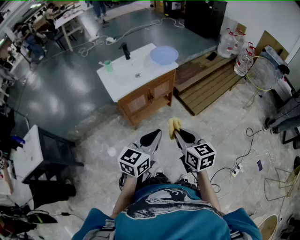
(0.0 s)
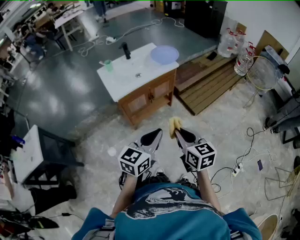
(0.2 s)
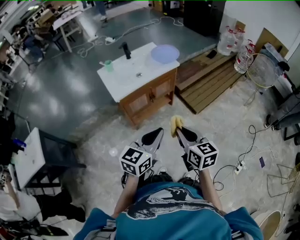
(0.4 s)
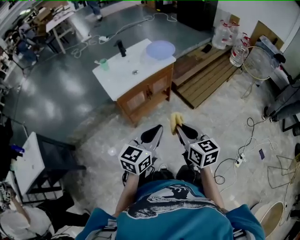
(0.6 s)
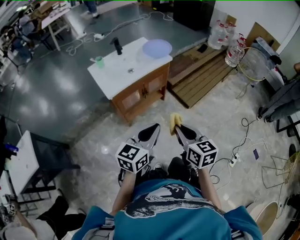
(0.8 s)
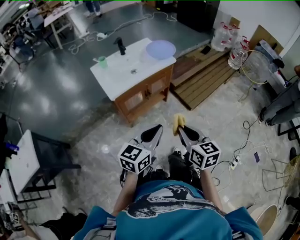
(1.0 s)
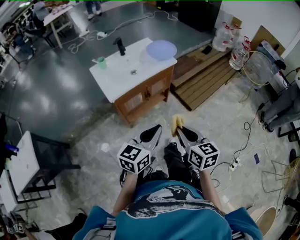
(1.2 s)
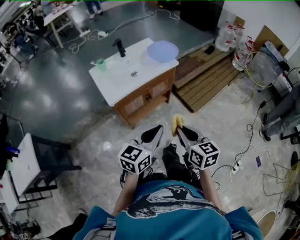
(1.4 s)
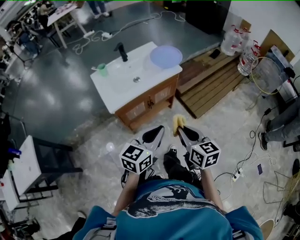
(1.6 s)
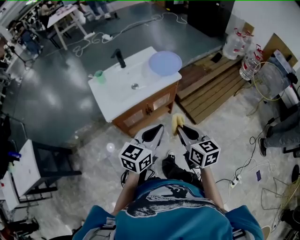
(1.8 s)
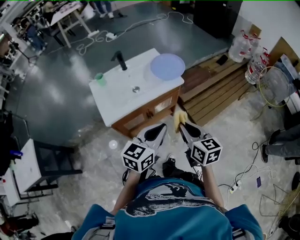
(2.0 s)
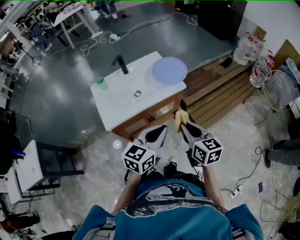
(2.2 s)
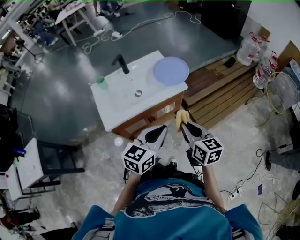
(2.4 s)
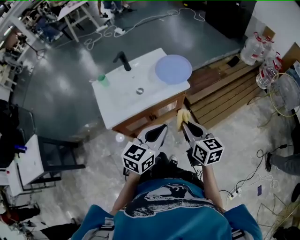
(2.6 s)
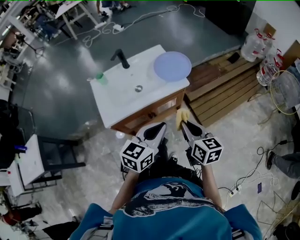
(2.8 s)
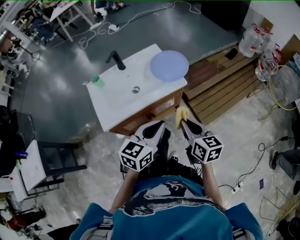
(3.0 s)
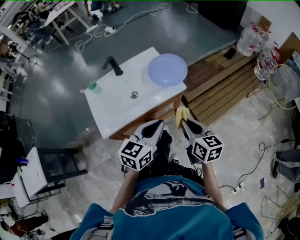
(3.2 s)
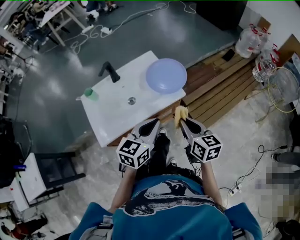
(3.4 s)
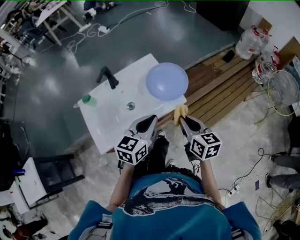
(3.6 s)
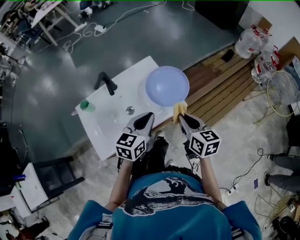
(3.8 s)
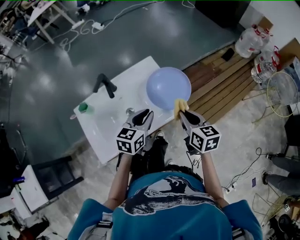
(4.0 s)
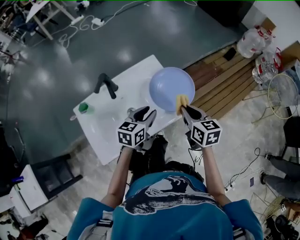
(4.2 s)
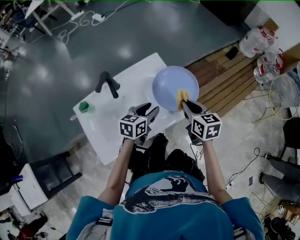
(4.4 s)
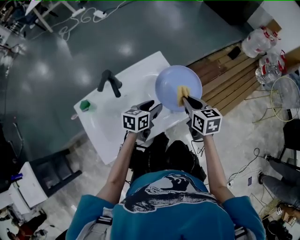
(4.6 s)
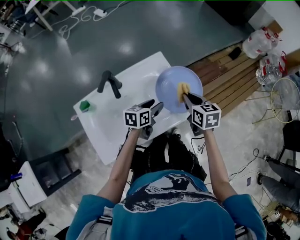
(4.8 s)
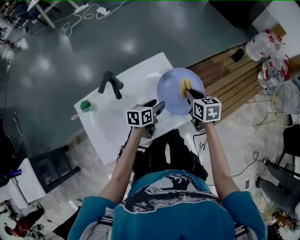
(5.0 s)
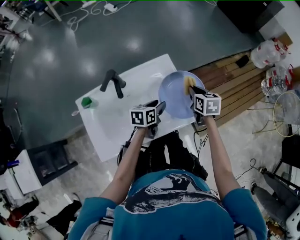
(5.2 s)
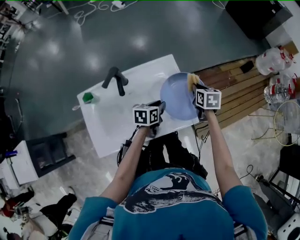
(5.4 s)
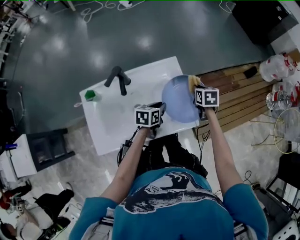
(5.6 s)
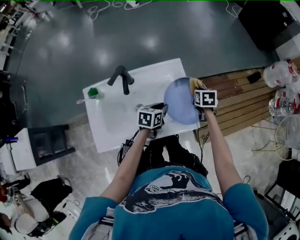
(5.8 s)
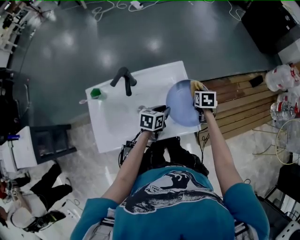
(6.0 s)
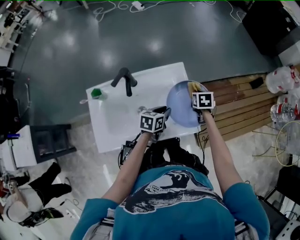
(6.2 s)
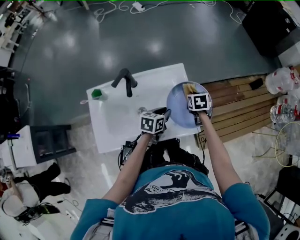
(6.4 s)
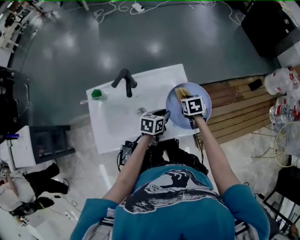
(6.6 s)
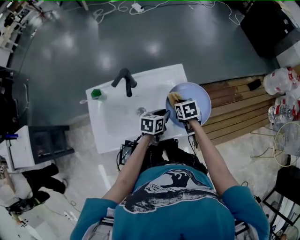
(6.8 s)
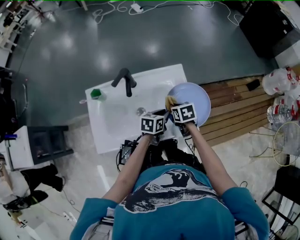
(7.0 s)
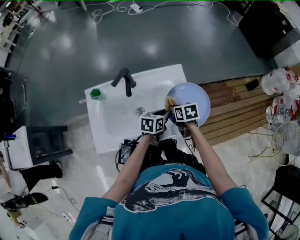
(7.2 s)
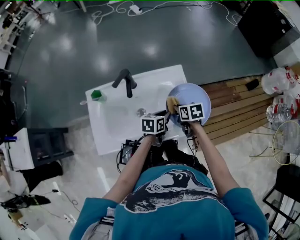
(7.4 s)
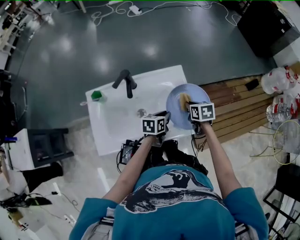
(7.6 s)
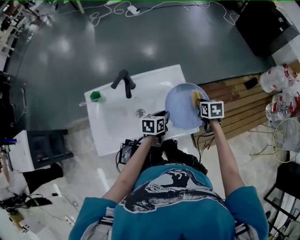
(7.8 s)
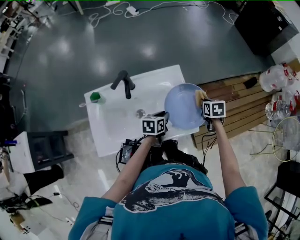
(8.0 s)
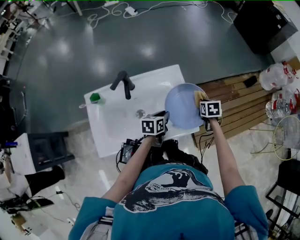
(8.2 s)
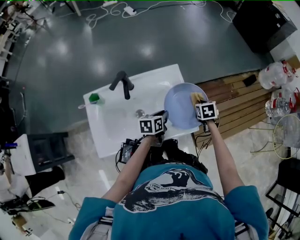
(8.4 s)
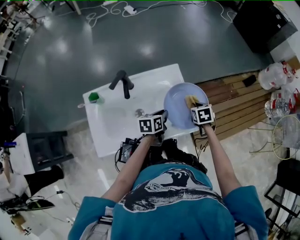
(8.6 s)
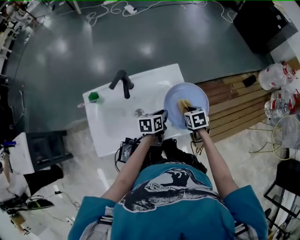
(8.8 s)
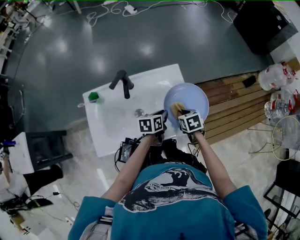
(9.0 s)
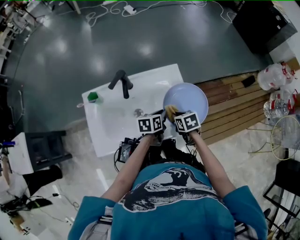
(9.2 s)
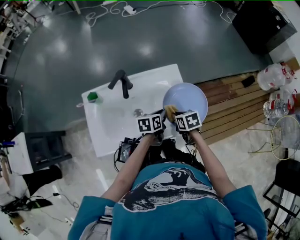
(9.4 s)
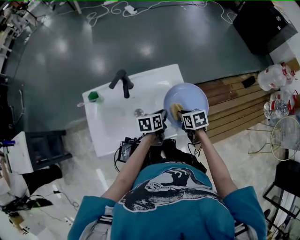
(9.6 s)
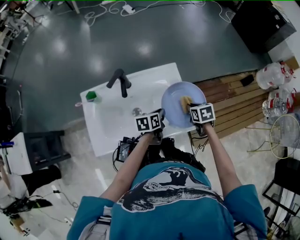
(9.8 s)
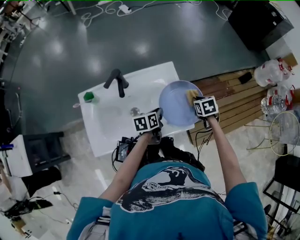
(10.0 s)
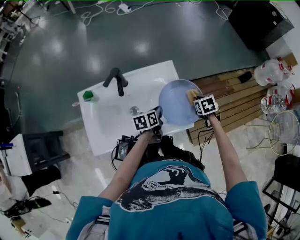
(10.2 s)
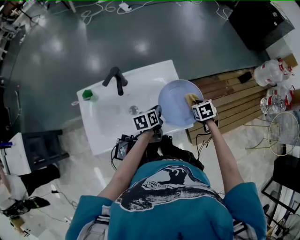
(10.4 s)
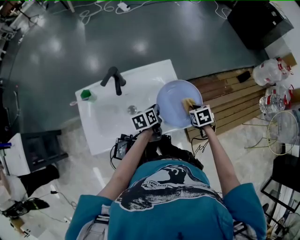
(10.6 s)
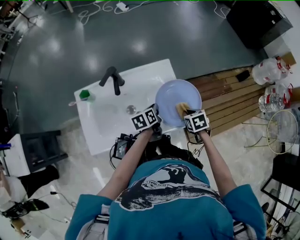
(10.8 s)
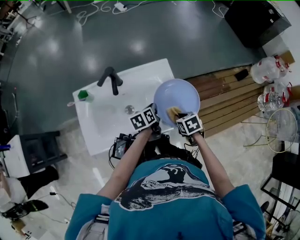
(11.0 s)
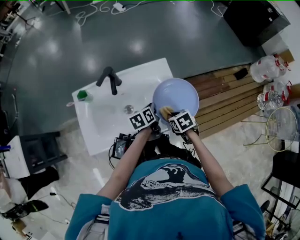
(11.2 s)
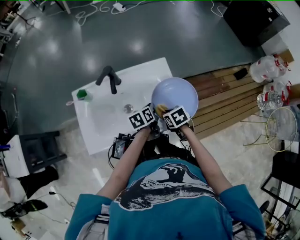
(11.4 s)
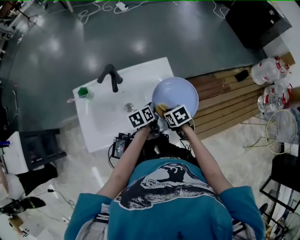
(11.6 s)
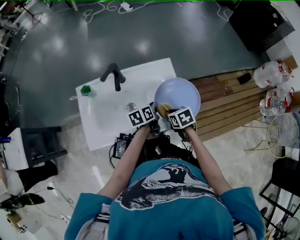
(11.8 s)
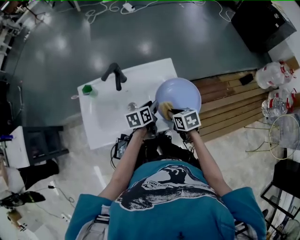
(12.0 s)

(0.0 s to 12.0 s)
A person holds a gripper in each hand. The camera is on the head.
0.0 s - 1.6 s: The two grippers go some 15 cm forward.
1.6 s - 3.0 s: The grippers both shift forward by about 20 cm.
3.0 s - 4.4 s: The right gripper heads forward, covering about 30 cm. Meanwhile the left gripper travels forward and downward by about 30 cm, and opens its fingers.
4.4 s - 6.0 s: The left gripper shifts roughly 5 cm downward, and closes its fingers, while the right gripper travels forward and downward by approximately 20 cm, and rotates some 30 degrees.
6.0 s - 7.6 s: The right gripper shifts roughly 10 cm backward and to the left.
7.6 s - 9.0 s: The right gripper travels backward by about 5 cm, and travels to the right and back again, some 10 cm each way.
9.0 s - 10.4 s: The right gripper is displaced to the right by roughly 10 cm.
10.4 s - 12.0 s: The right gripper shifts approximately 15 cm to the left, and swivels roughly 20 degrees, while the left gripper opens its fingers.

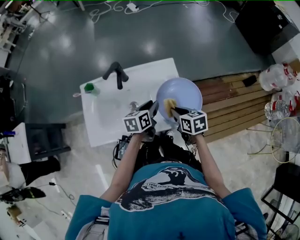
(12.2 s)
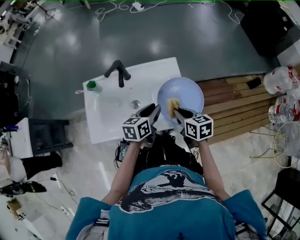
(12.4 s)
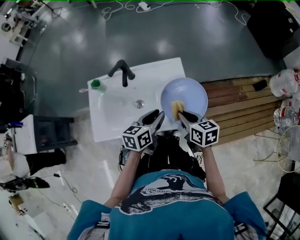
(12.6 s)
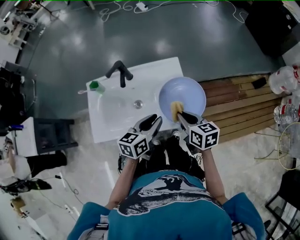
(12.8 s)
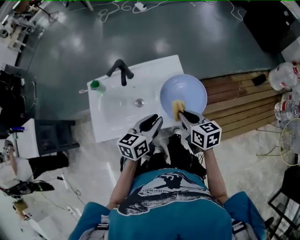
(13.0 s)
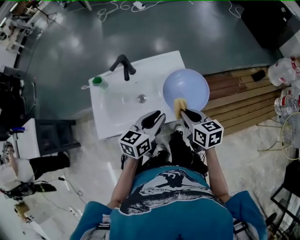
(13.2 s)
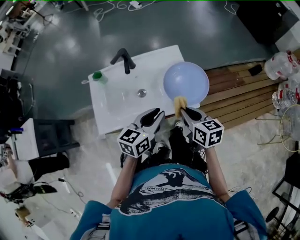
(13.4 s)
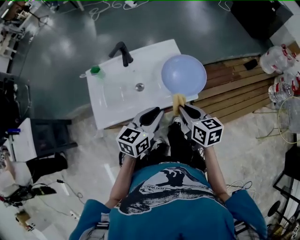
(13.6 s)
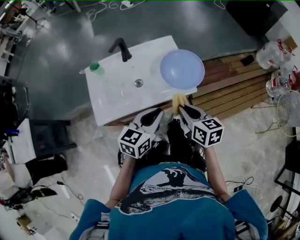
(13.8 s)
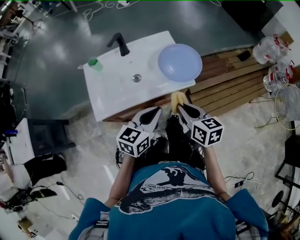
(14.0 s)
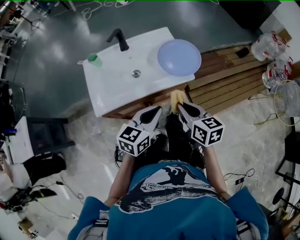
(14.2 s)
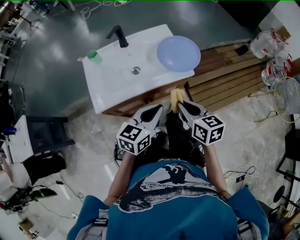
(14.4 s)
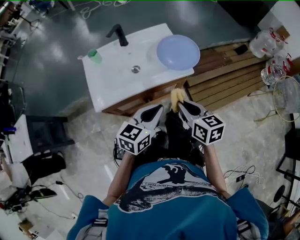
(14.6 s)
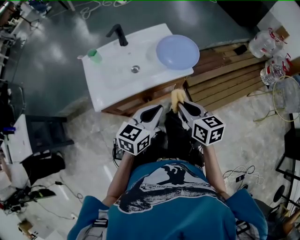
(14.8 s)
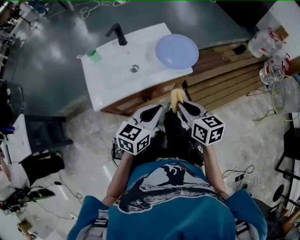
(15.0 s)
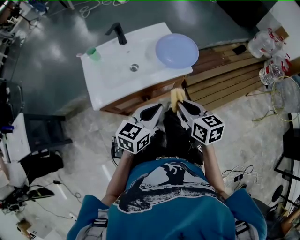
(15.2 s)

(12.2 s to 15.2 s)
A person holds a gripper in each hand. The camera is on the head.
12.2 s - 13.8 s: Both grippers travel together backward and upward, some 20 cm. The left gripper changes its angle by about 30 degrees.
13.8 s - 15.2 s: The grippers both shift backward by about 10 cm.

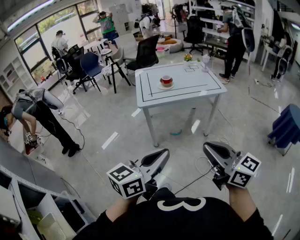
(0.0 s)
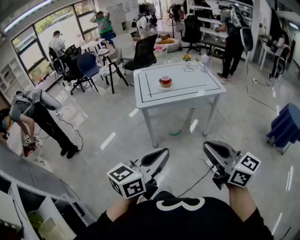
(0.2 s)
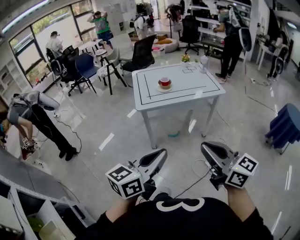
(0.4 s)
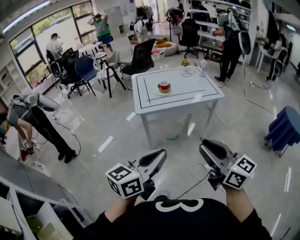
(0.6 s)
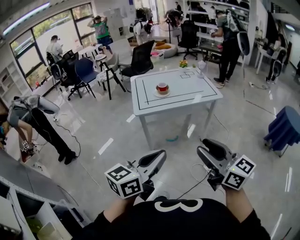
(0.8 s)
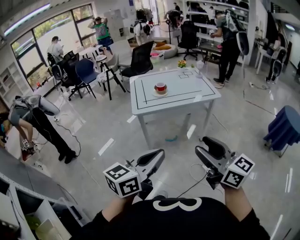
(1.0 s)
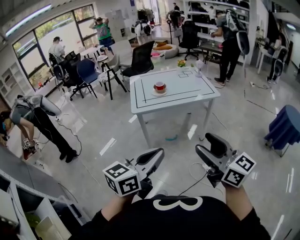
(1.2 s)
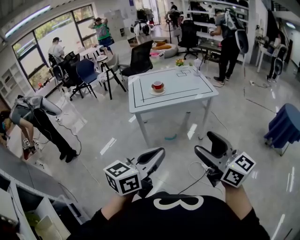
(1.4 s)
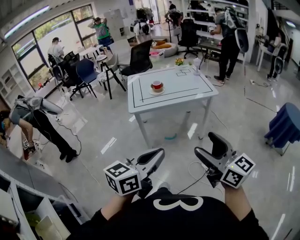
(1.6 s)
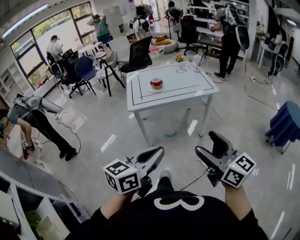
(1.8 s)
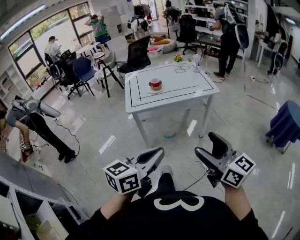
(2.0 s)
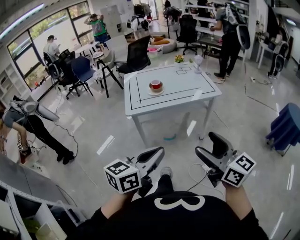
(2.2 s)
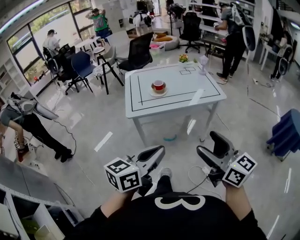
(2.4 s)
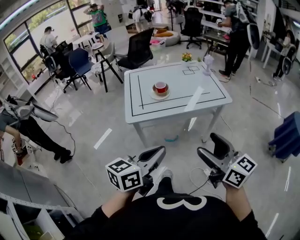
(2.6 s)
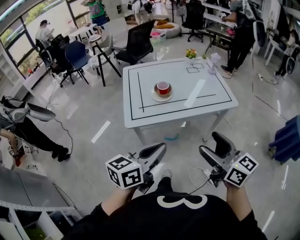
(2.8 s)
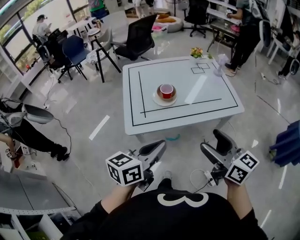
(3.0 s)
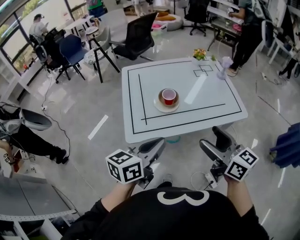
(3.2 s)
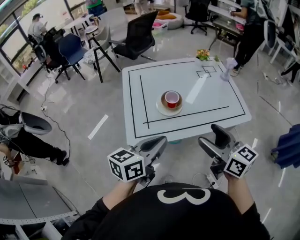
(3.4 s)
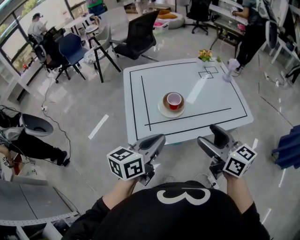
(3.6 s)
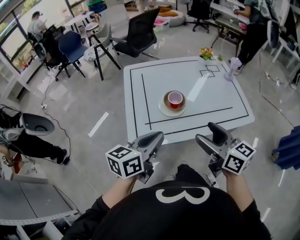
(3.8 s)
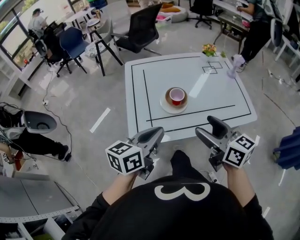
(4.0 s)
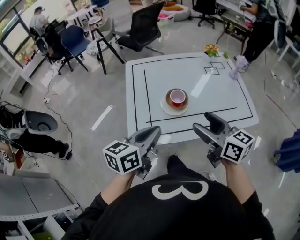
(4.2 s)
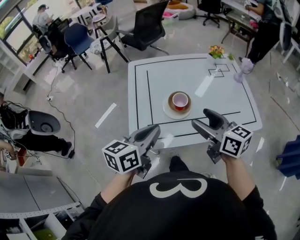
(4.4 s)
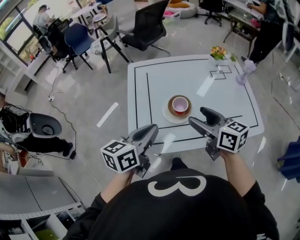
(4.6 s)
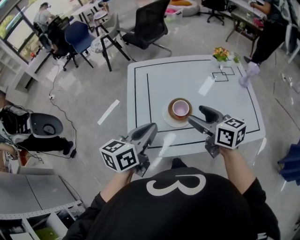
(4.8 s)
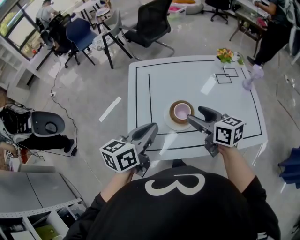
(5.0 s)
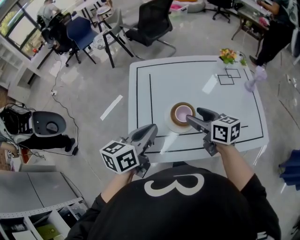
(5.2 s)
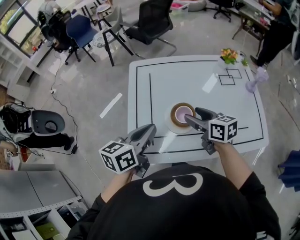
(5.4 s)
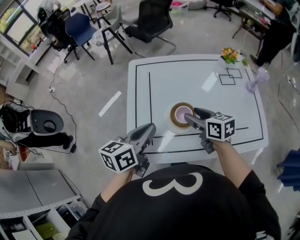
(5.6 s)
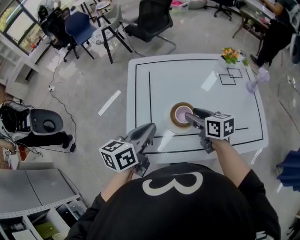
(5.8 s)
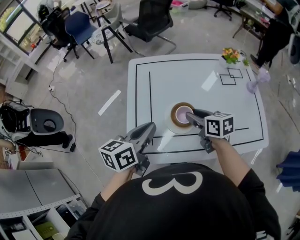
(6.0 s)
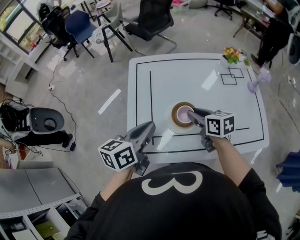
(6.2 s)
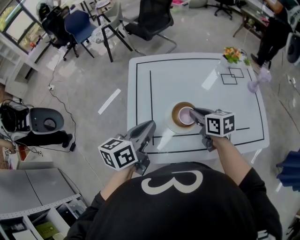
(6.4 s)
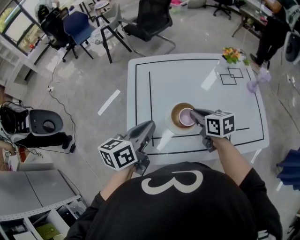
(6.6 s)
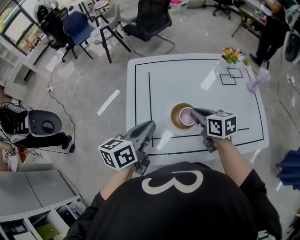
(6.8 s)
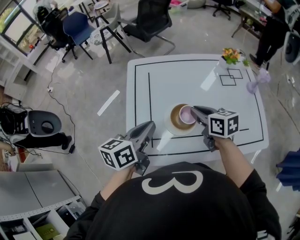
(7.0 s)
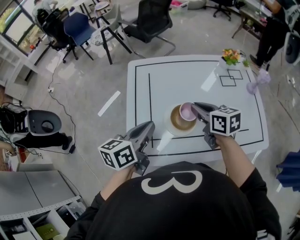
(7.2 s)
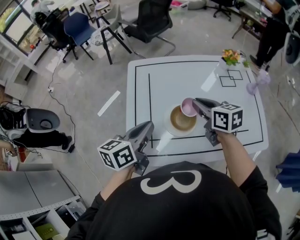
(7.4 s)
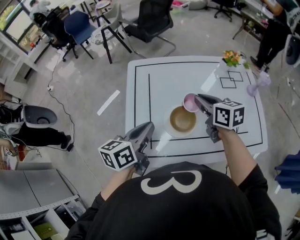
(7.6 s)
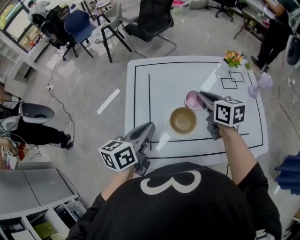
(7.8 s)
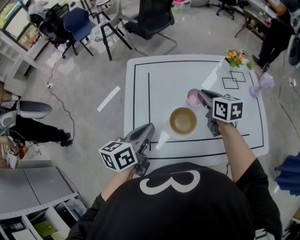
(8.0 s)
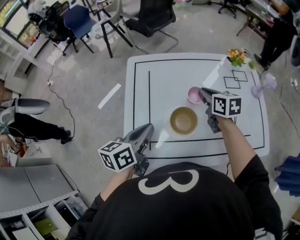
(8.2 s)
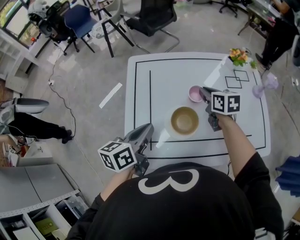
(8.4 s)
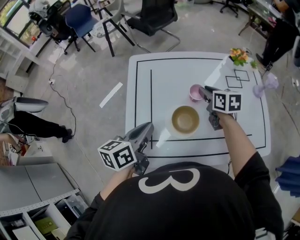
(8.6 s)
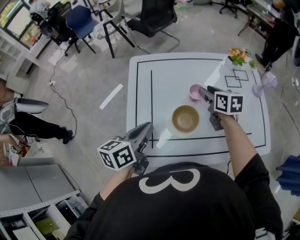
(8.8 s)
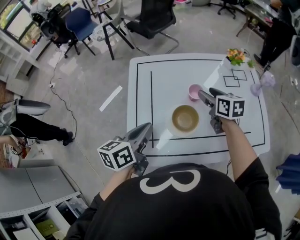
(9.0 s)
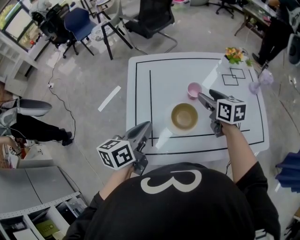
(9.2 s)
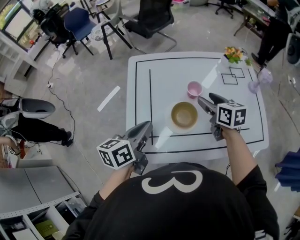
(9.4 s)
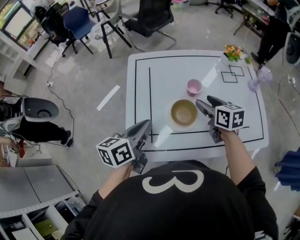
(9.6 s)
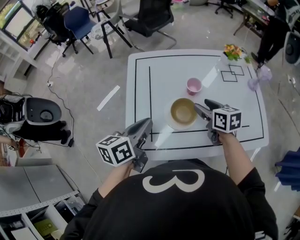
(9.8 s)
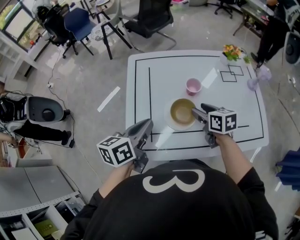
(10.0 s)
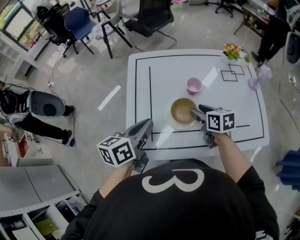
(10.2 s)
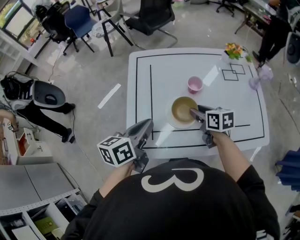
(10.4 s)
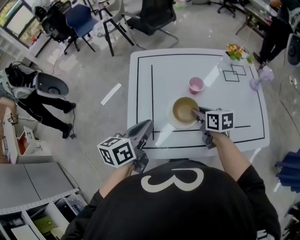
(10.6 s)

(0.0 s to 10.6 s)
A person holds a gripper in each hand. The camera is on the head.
0.0 s - 1.6 s: The left gripper ends up some 5 cm from where it was; the right gripper is displaced to the right by roughly 5 cm, and opens up.
1.6 s - 3.0 s: The grippers both shift forward by about 35 cm.
3.0 s - 4.6 s: Both grippers move forward, some 25 cm.
4.6 s - 6.0 s: The right gripper shifts approximately 15 cm downward and forward, rotates about 20 degrees, and closes. The left gripper is displaced forward by some 10 cm.
6.0 s - 7.6 s: The right gripper is displaced upward and forward by approximately 10 cm.
7.6 s - 9.0 s: The right gripper moves roughly 5 cm, and opens up.
9.0 s - 10.6 s: The right gripper is displaced backward and downward by some 10 cm, and closes its fingers.
